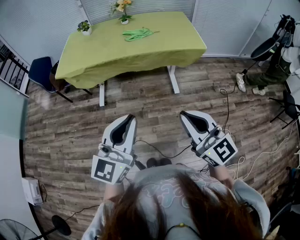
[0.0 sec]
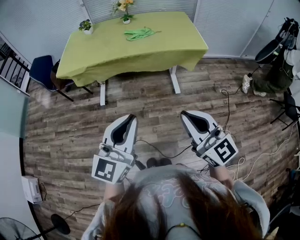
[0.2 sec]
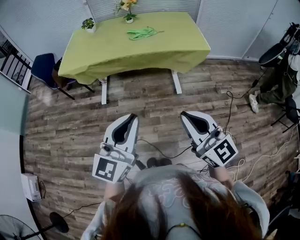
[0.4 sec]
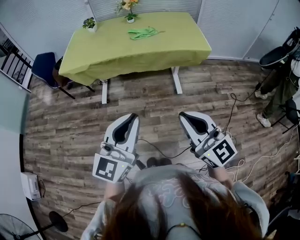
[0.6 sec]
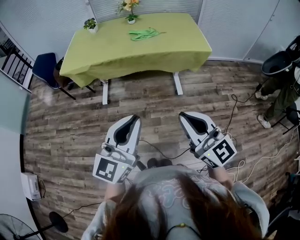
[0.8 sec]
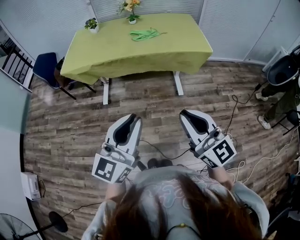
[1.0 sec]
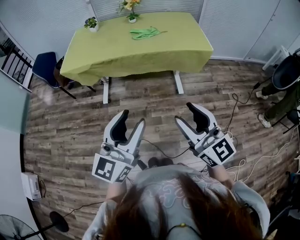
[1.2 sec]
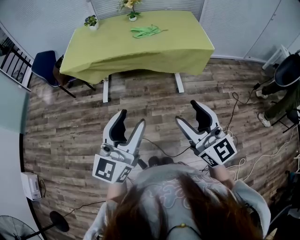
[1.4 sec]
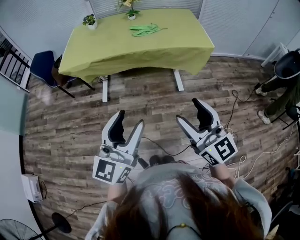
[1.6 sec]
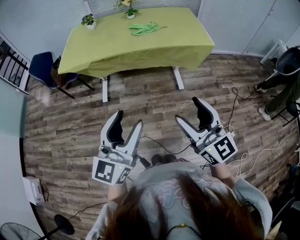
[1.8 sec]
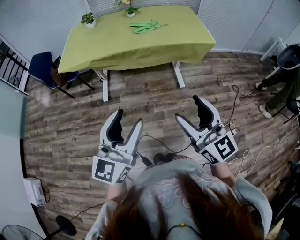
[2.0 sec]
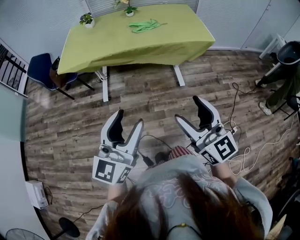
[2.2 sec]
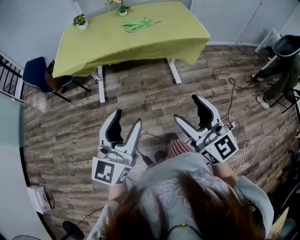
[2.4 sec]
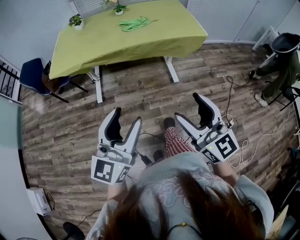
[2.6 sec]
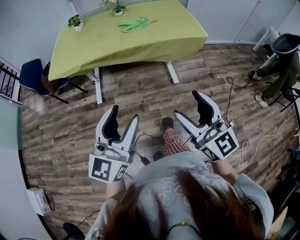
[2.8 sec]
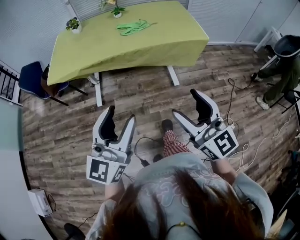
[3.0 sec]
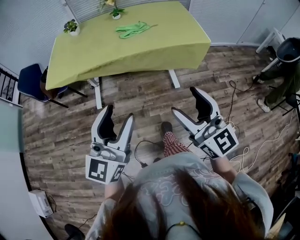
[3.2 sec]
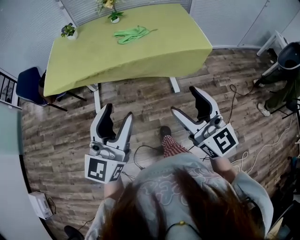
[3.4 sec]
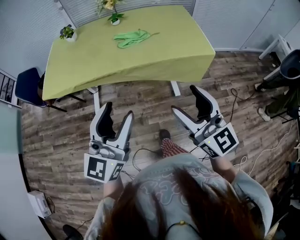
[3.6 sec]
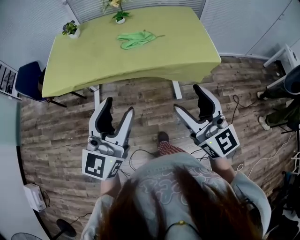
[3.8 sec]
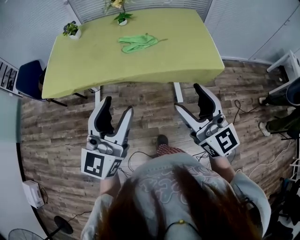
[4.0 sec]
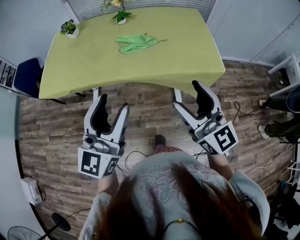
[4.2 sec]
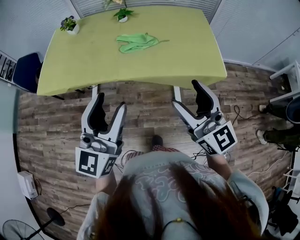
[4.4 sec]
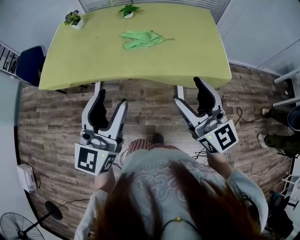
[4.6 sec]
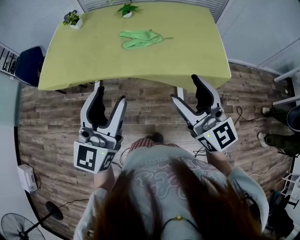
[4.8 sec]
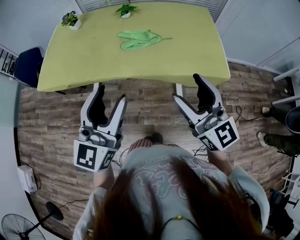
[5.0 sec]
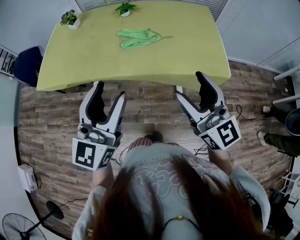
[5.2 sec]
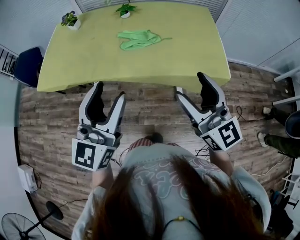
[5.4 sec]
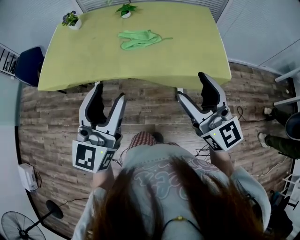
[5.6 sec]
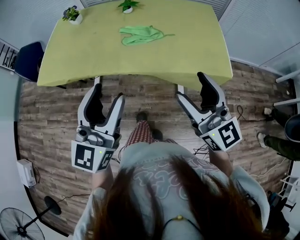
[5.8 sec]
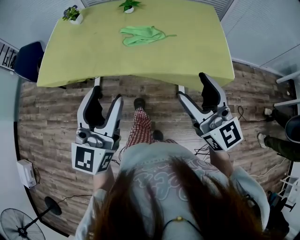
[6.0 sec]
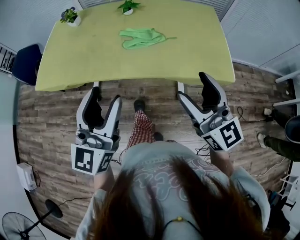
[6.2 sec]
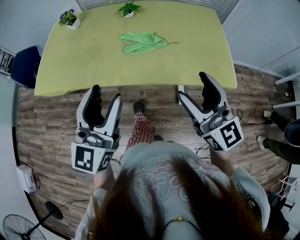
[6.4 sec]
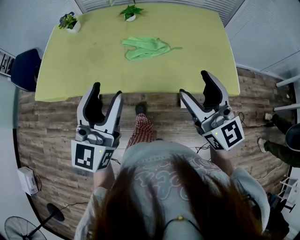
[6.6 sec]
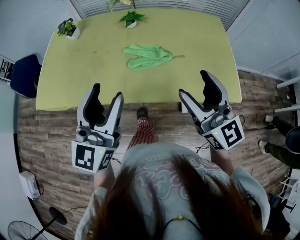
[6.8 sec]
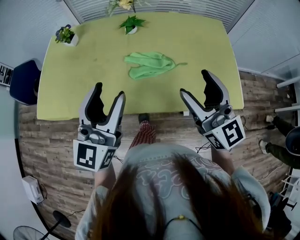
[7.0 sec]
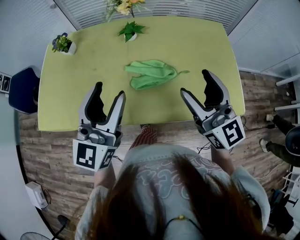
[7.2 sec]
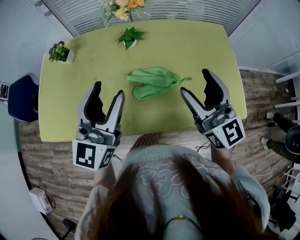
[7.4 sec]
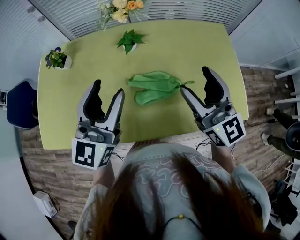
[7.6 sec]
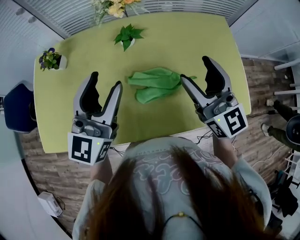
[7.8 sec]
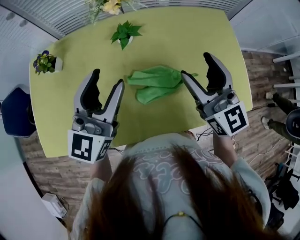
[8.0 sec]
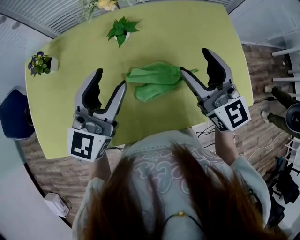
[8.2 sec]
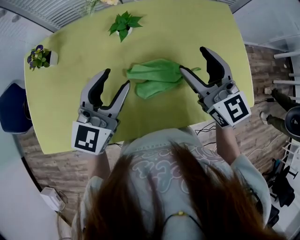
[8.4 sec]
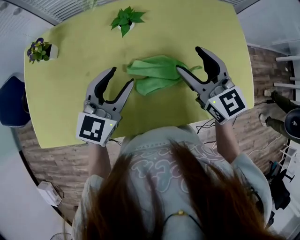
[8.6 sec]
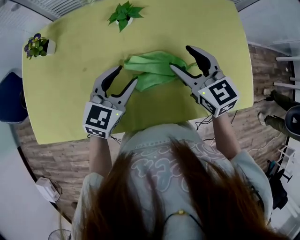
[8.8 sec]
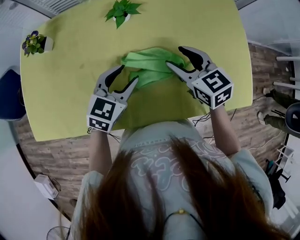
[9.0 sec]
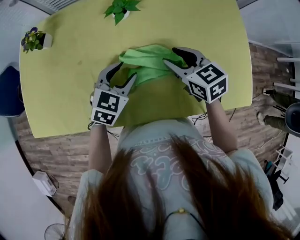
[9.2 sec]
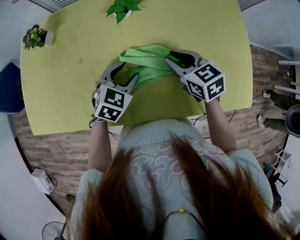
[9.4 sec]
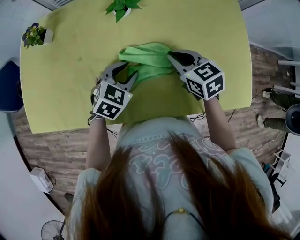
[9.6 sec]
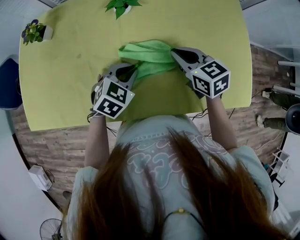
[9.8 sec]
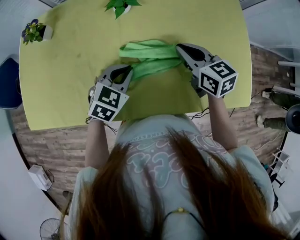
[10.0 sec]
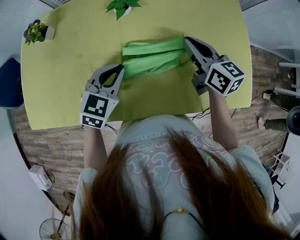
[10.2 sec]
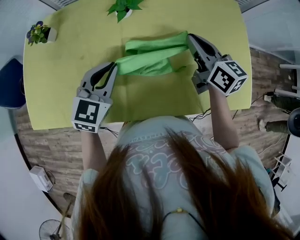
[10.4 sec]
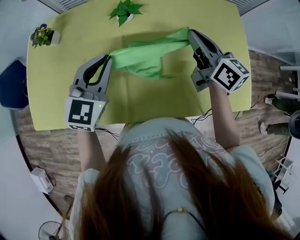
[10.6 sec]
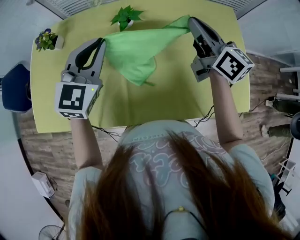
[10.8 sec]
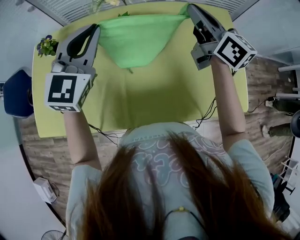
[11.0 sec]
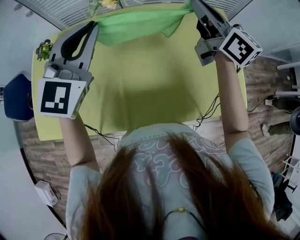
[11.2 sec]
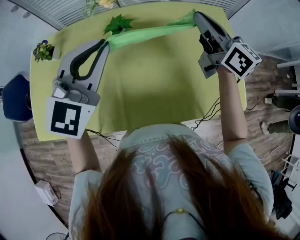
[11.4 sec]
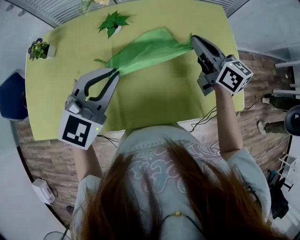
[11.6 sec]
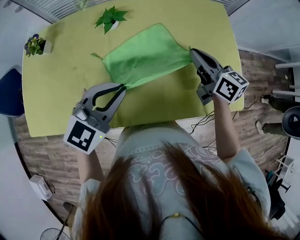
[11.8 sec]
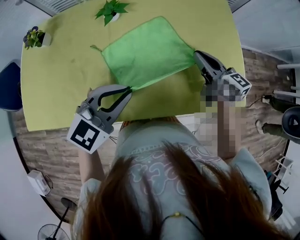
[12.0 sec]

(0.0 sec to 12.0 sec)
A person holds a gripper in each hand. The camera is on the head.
0.0 sec - 1.6 sec: The right gripper opens up; the left gripper is displaced to the left by approximately 5 cm, and opens up.
1.6 sec - 3.0 sec: The grippers both shift forward by some 5 cm.
3.0 sec - 4.4 sec: Both grippers move forward, about 30 cm.
4.4 sec - 6.0 sec: The grippers move only a little.
6.0 sec - 7.6 sec: The two grippers go roughly 30 cm forward.
7.6 sec - 9.0 sec: Both grippers travel together downward, some 20 cm. The left gripper tips its fingers downward by roughly 40 degrees. The right gripper angles its fingers downward, by approximately 40 degrees.
9.0 sec - 10.4 sec: The right gripper heads to the right, covering some 5 cm, swivels some 30 degrees, and closes up, while the left gripper ends up approximately 5 cm from where it was, and closes up.
10.4 sec - 12.0 sec: The two grippers go approximately 10 cm to the right and backward. The right gripper travels upward and back again, approximately 15 cm each way. The left gripper goes upward and returns, about 20 cm each way, and turns by about 20 degrees.

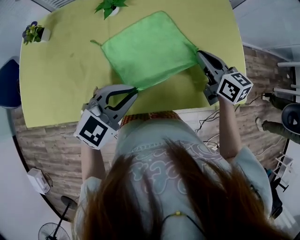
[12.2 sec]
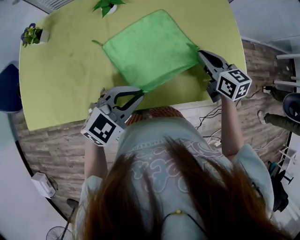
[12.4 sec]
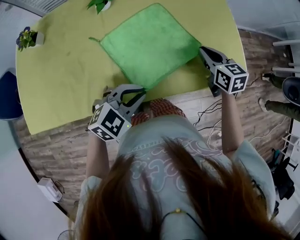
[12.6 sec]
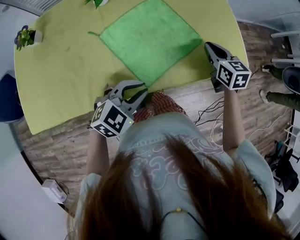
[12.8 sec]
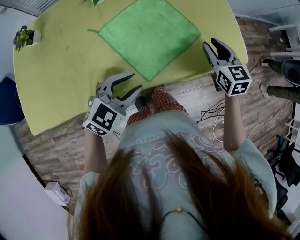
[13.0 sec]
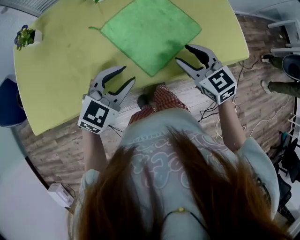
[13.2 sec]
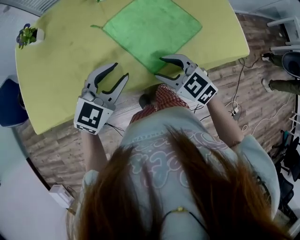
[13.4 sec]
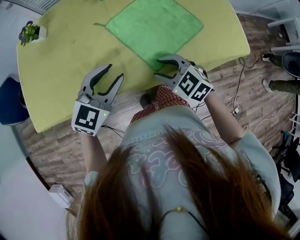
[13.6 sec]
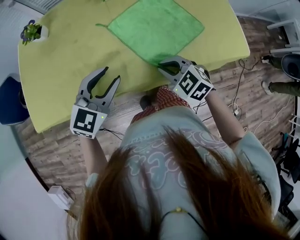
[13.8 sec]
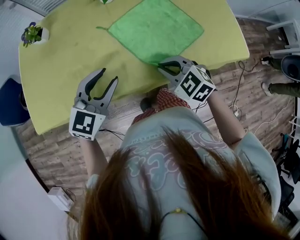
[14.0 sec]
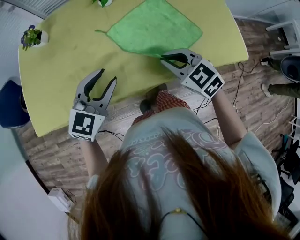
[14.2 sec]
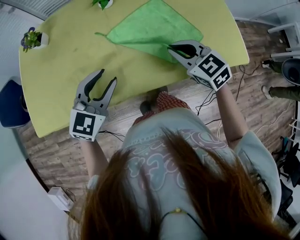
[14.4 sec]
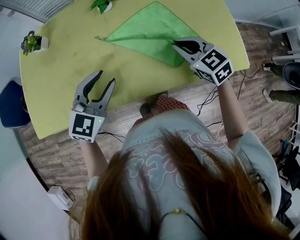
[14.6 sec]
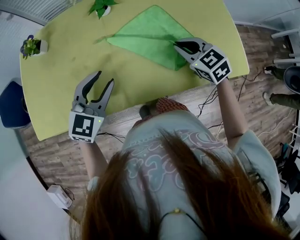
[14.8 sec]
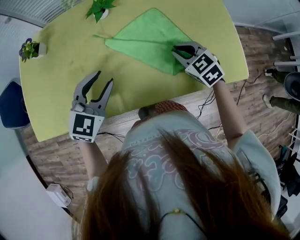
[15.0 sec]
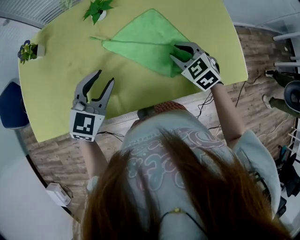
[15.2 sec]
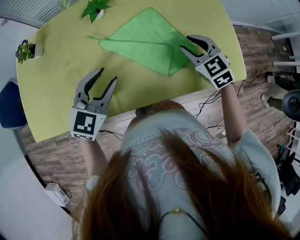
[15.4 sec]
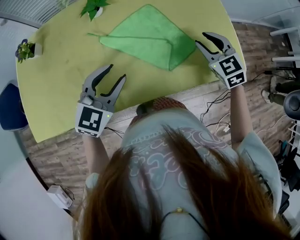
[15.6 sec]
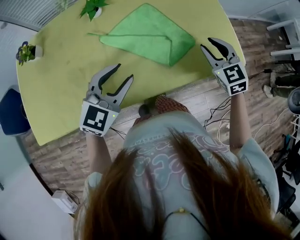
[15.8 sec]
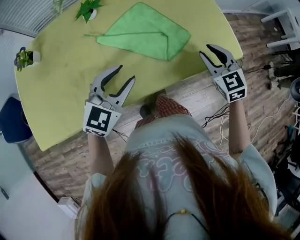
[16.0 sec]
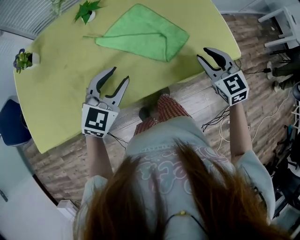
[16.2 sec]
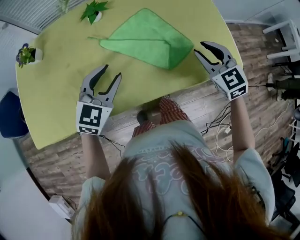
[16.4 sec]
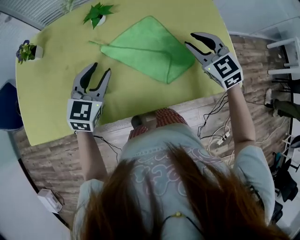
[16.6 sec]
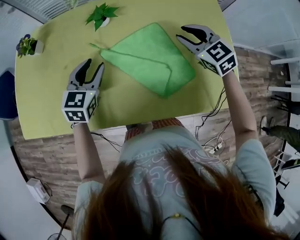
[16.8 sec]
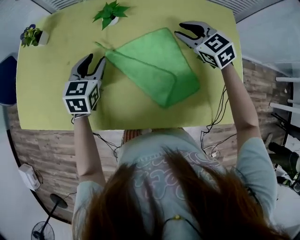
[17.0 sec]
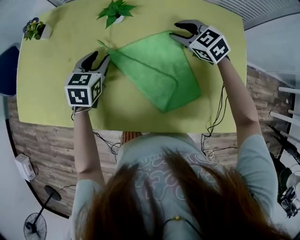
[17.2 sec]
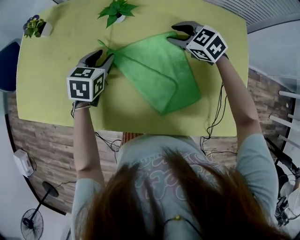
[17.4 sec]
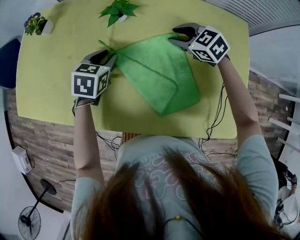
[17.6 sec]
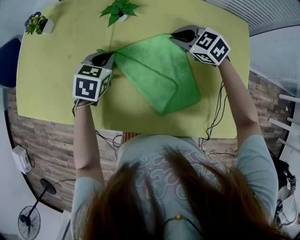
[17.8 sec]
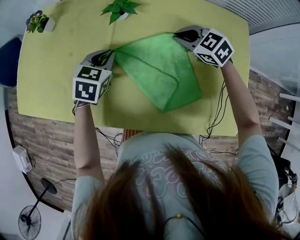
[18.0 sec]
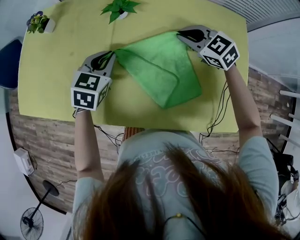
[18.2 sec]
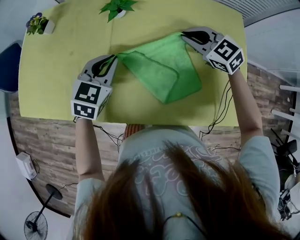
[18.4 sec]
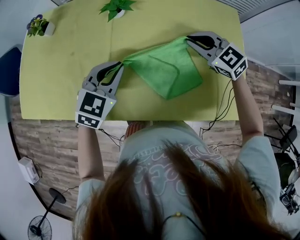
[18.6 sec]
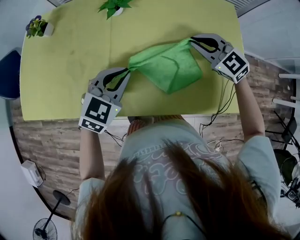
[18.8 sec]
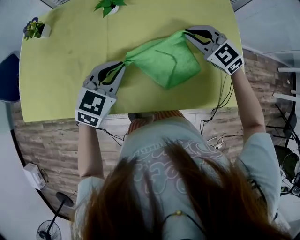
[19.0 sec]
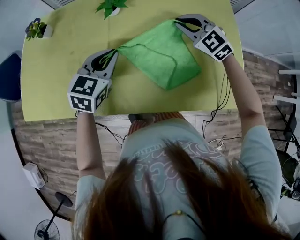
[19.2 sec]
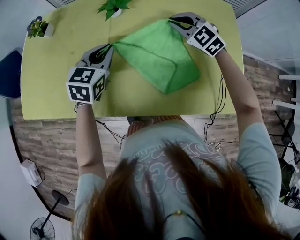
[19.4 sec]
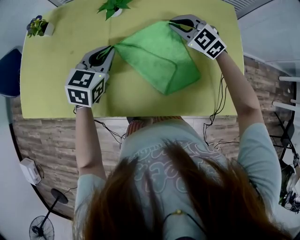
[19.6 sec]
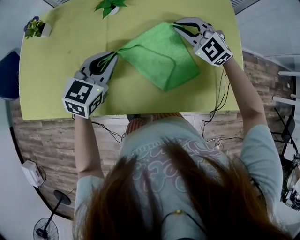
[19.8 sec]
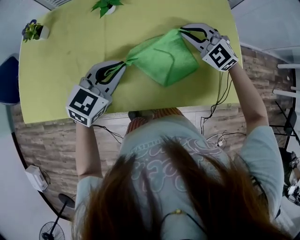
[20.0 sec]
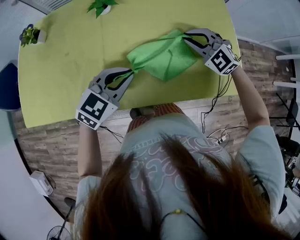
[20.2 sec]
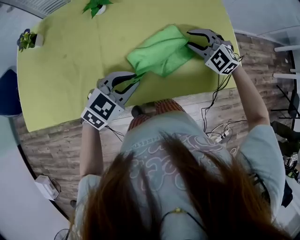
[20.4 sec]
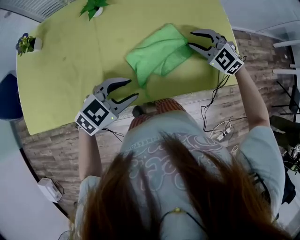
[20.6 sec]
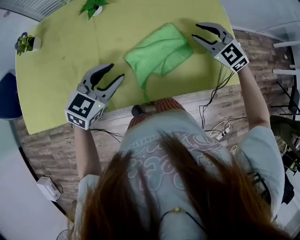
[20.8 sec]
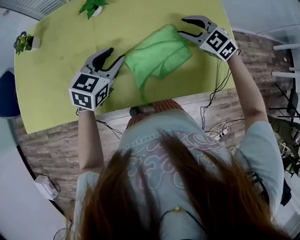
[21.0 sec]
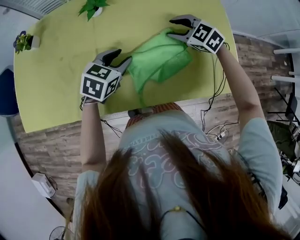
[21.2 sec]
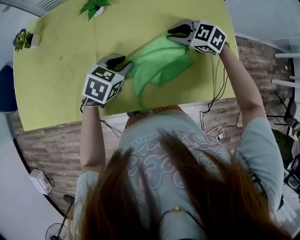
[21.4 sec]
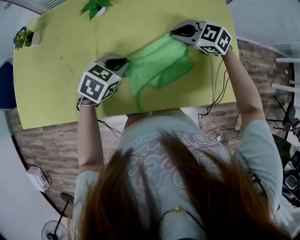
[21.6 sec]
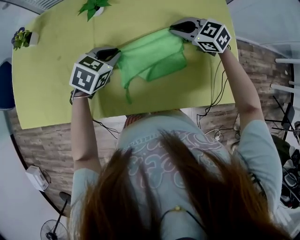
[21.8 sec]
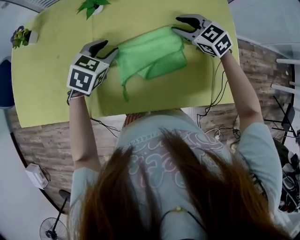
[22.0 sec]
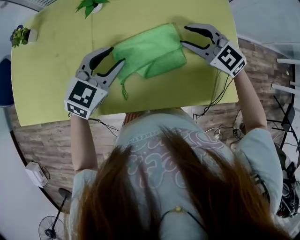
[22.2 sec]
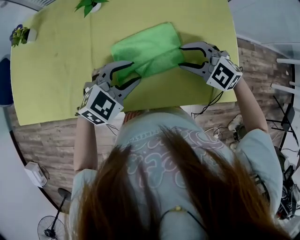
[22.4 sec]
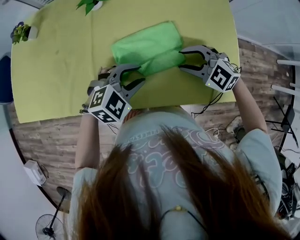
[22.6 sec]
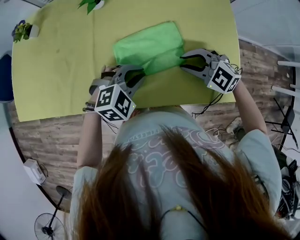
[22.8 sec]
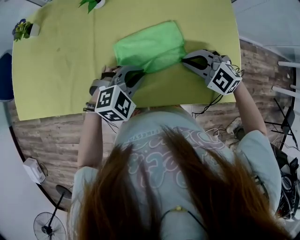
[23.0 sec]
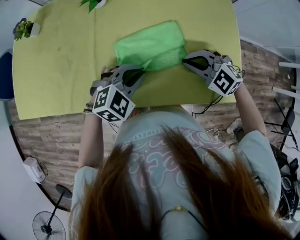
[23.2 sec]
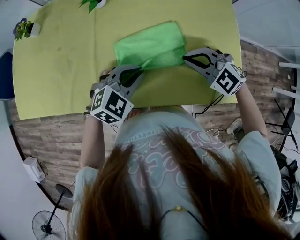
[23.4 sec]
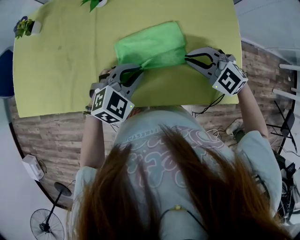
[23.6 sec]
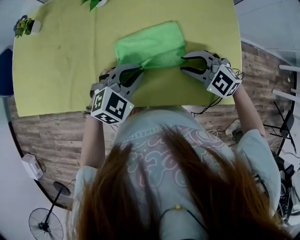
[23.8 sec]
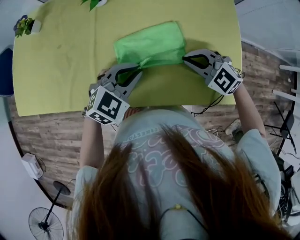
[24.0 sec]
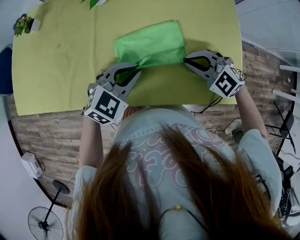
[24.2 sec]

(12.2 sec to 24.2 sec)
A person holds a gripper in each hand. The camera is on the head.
12.2 sec - 13.8 sec: The left gripper changes place by roughly 15 cm, and opens up. Meanwhile the right gripper moves some 25 cm, rotates around the line of its fingers by about 40 degrees, counterclockwise from behind, and opens and closes again.
13.8 sec - 15.2 sec: The left gripper goes some 10 cm forward. Meanwhile the right gripper travels forward and to the right by some 20 cm, and opens up.
15.2 sec - 16.6 sec: The right gripper is displaced upward by roughly 10 cm, and reaches about 10 cm backward, then returns.
16.6 sec - 18.2 sec: The right gripper ends up some 15 cm from where it was, changes its angle by roughly 30 degrees, and closes, while the left gripper turns by some 20 degrees, and closes its fingers.
18.2 sec - 19.8 sec: The right gripper goes forward and backward, about 10 cm each way, reversing 2 times, and changes its angle by approximately 30 degrees. Meanwhile the left gripper goes forward and backward, roughly 10 cm each way, reversing 2 times.
19.8 sec - 21.2 sec: The left gripper moves downward and to the right, approximately 10 cm, goes backward and returns, about 15 cm each way, and opens, while the right gripper goes roughly 5 cm downward, goes to the right and returns, about 10 cm each way, turns by roughly 30 degrees, and opens.
21.2 sec - 22.6 sec: The right gripper moves some 10 cm, turns by some 20 degrees, and closes, then reopens. The left gripper moves approximately 10 cm, changes its angle by roughly 30 degrees, and closes, then reopens.
22.6 sec - 24.2 sec: The left gripper closes its fingers, while the right gripper closes.
